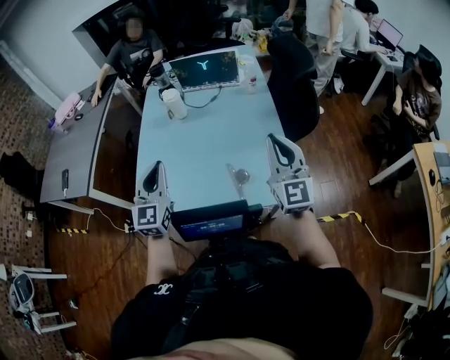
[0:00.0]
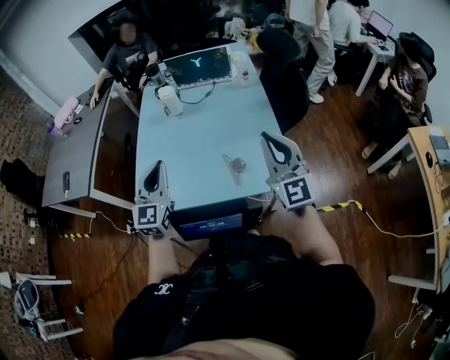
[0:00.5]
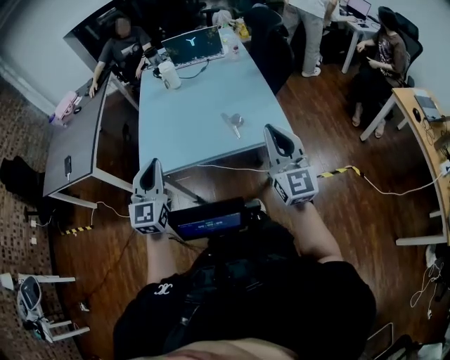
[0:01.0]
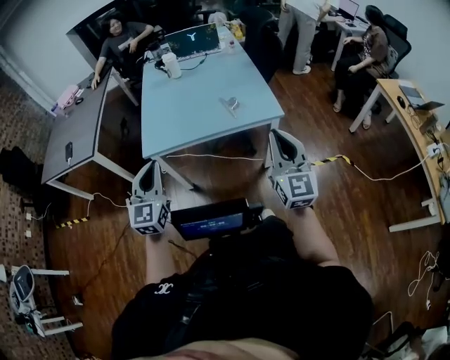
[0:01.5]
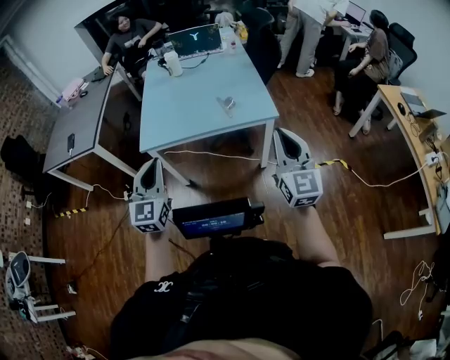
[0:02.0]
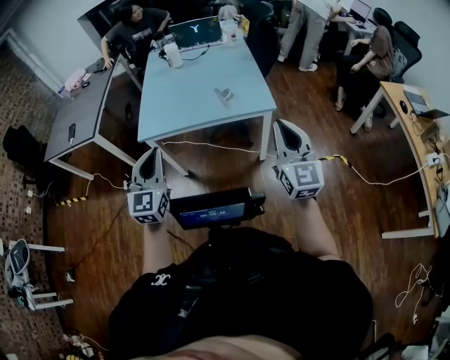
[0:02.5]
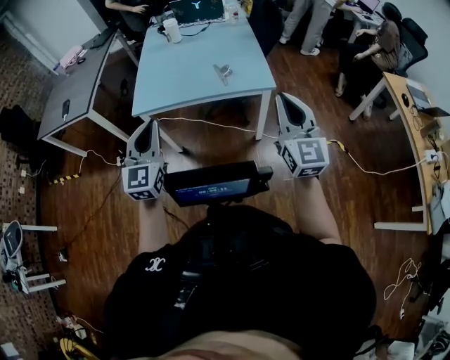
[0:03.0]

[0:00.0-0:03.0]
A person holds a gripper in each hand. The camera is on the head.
0:00.0 to 0:01.5: The grippers both shift backward by roughly 40 cm.
0:01.5 to 0:03.0: Both grippers travel together to the right, about 10 cm.

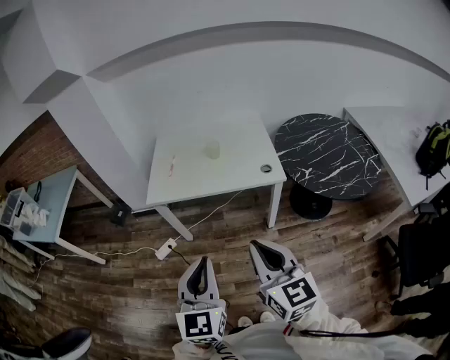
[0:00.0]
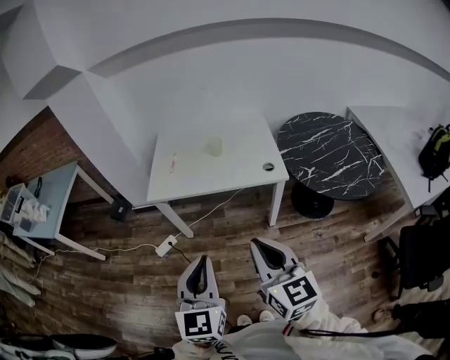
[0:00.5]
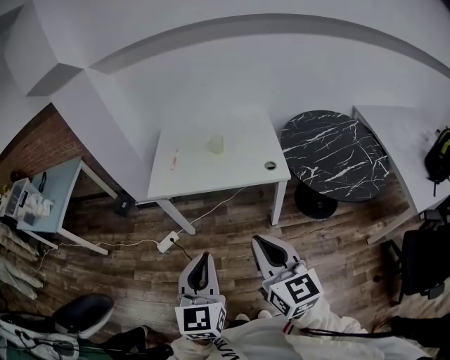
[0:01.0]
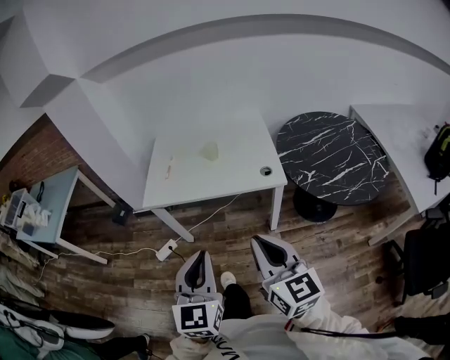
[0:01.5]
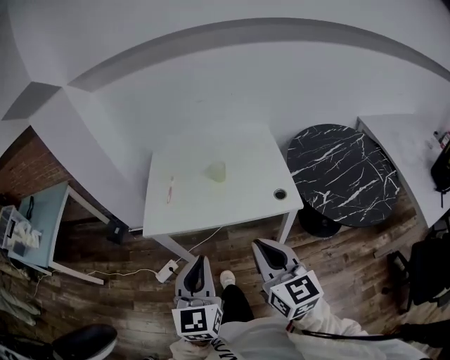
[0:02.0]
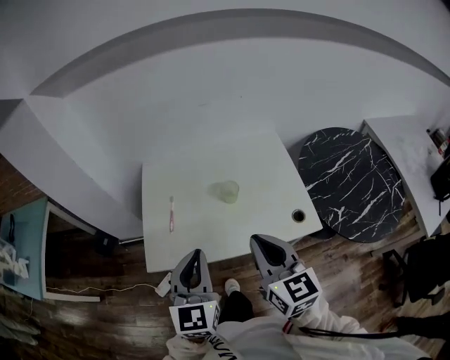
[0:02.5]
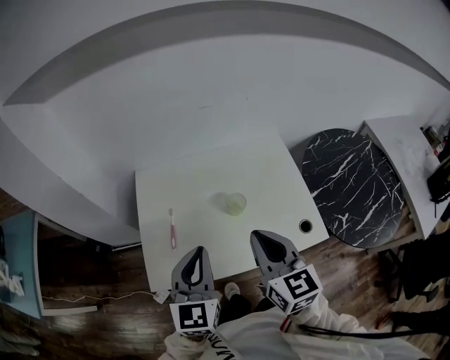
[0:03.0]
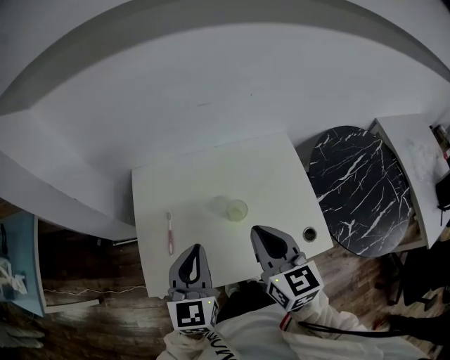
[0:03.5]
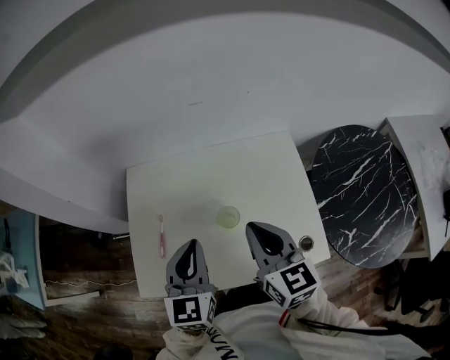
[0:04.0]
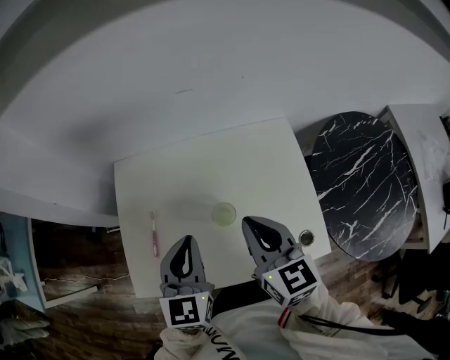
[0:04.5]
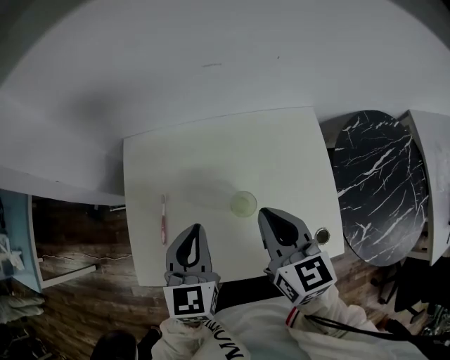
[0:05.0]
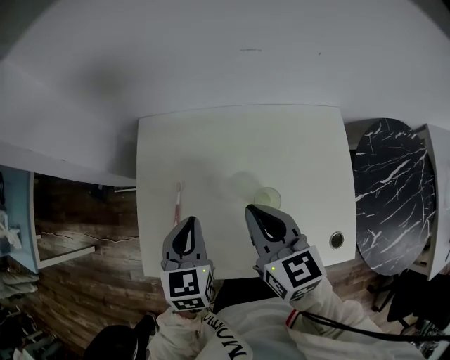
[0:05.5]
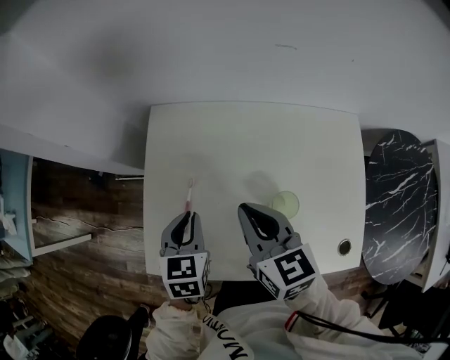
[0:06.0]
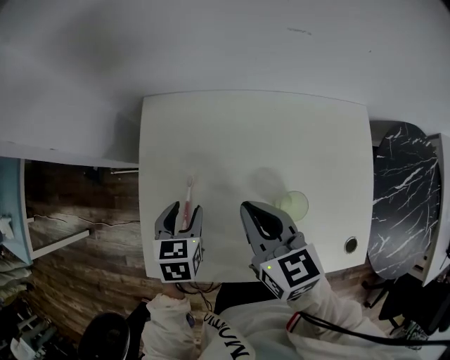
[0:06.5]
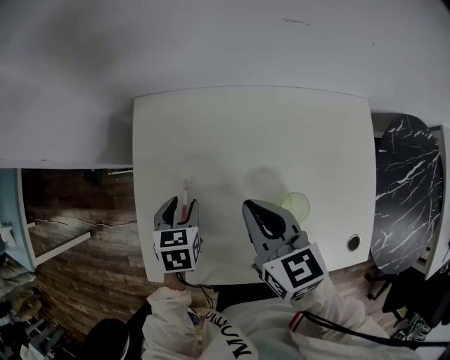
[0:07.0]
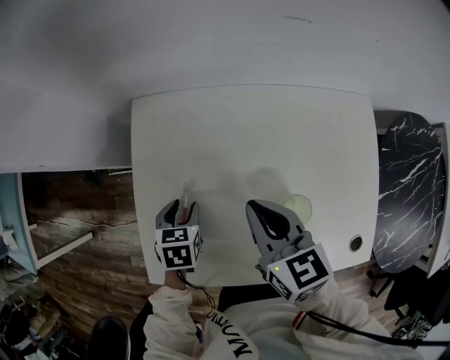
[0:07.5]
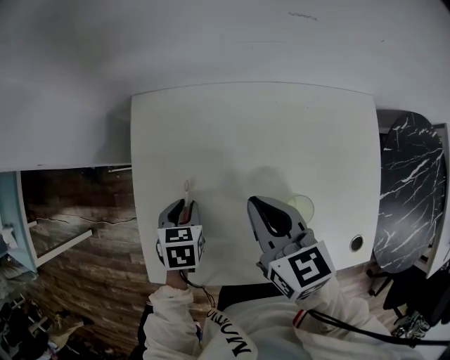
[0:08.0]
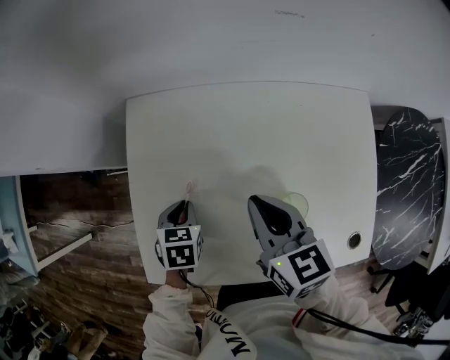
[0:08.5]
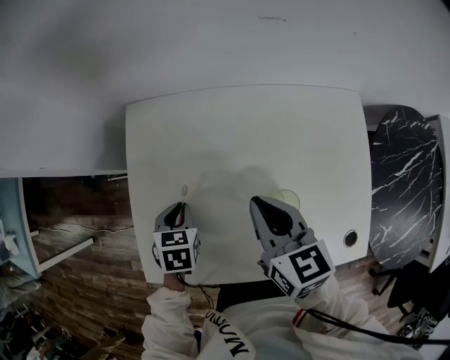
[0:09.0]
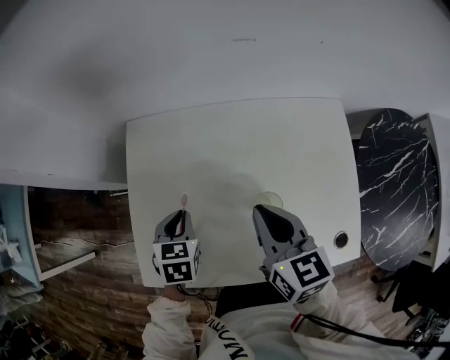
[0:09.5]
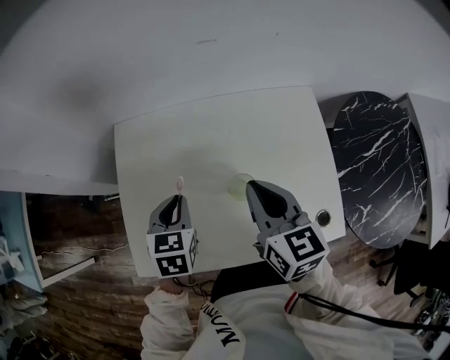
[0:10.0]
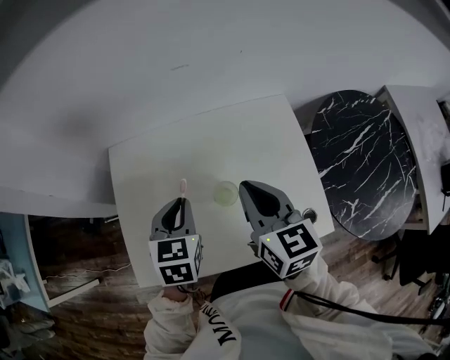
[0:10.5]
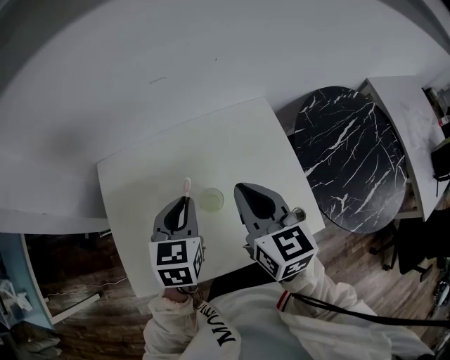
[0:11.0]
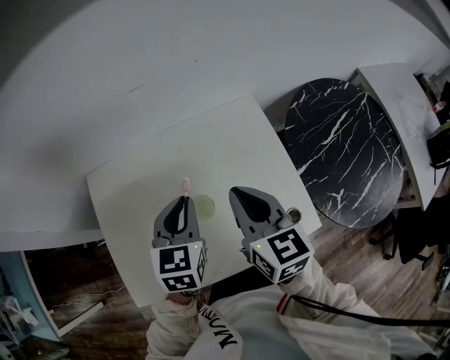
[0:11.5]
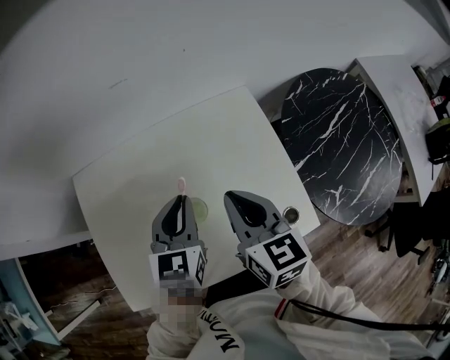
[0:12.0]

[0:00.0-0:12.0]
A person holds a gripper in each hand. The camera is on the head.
0:00.0 to 0:02.0: Both grippers travel together forward, roughly 20 cm.
0:02.0 to 0:04.0: The two grippers travel together, forward, some 40 cm.
0:04.0 to 0:06.0: The right gripper shifts about 20 cm to the left, downward and forward. The left gripper shifts roughly 25 cm downward and to the left, and rotates roughly 30 degrees.
0:06.0 to 0:08.0: The left gripper travels downward by about 15 cm, and opens, while the right gripper changes place by some 5 cm.
0:08.0 to 0:10.0: The right gripper heads to the right, upward and backward, covering about 15 cm. Meanwhile the left gripper goes some 20 cm upward and to the right.
0:10.0 to 0:12.0: The left gripper goes roughly 15 cm to the right, and turns by about 20 degrees. Meanwhile the right gripper travels to the right by some 10 cm.

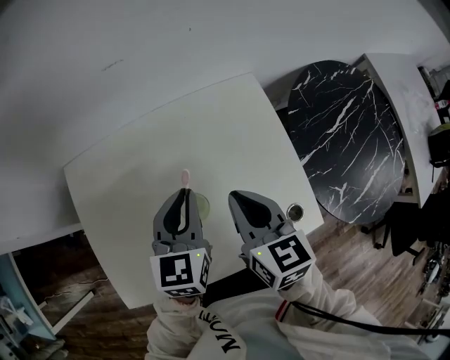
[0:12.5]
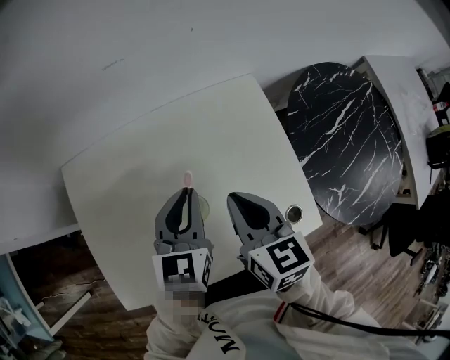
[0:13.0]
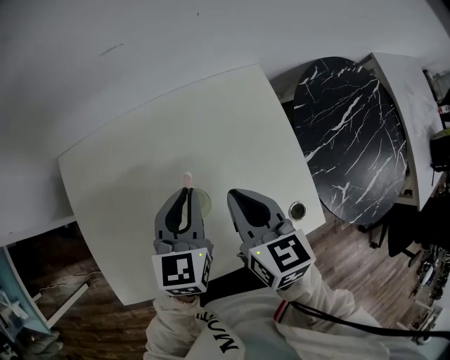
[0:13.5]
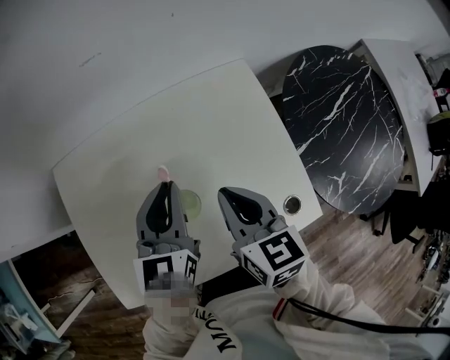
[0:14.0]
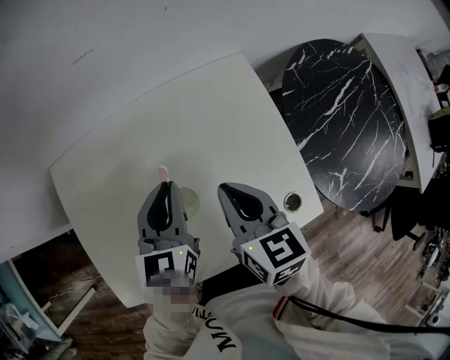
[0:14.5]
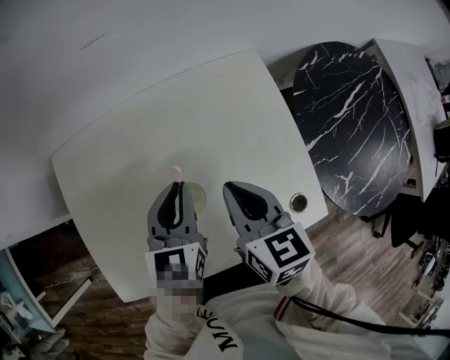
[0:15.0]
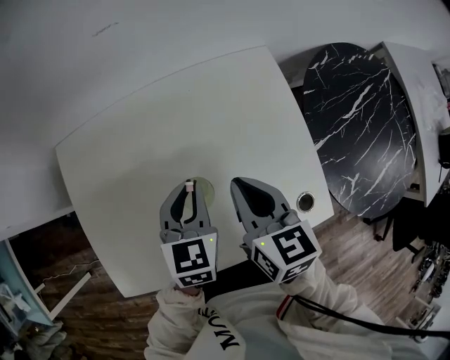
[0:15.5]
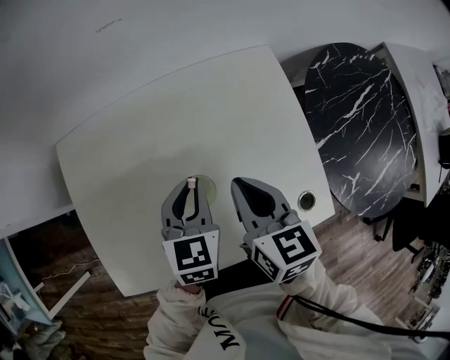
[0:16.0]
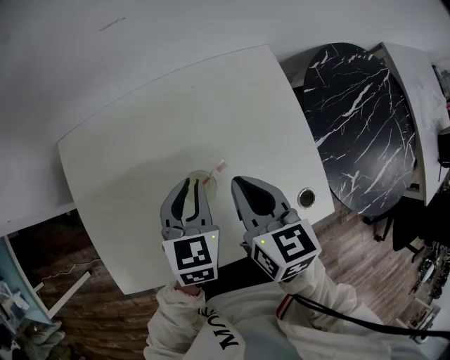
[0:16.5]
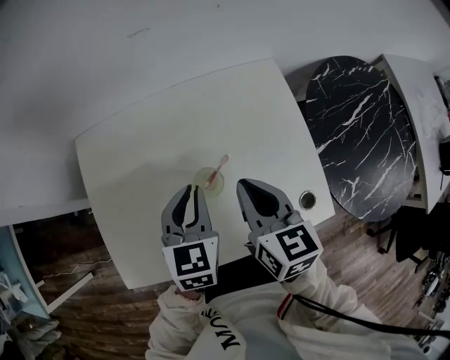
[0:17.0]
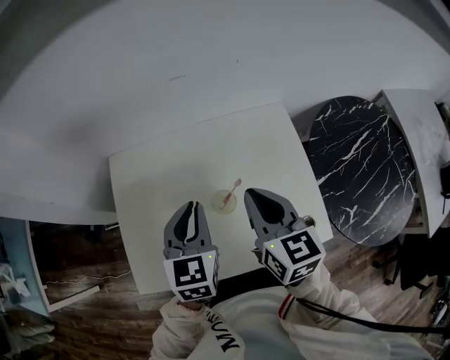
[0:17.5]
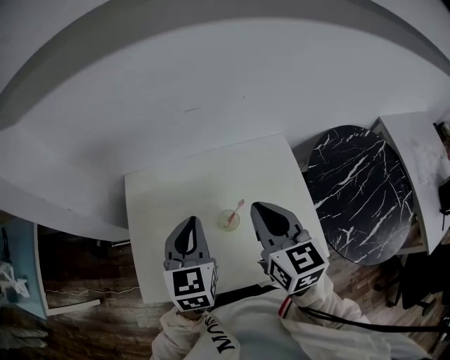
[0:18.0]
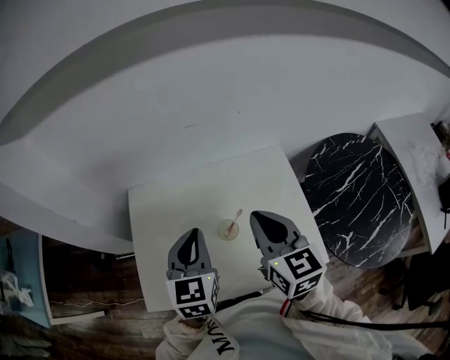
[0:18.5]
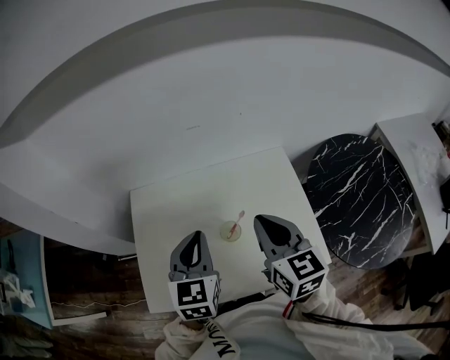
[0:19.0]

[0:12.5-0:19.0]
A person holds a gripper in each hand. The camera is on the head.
0:12.5 to 0:14.5: The grippers stay close to where they were, moving slightly.
0:14.5 to 0:17.0: The left gripper heads backward, covering some 5 cm.
0:17.0 to 0:19.0: The grippers both shift upward by roughly 15 cm.

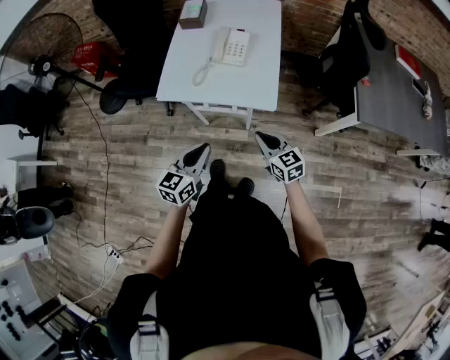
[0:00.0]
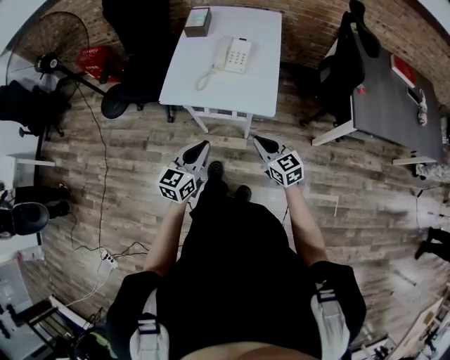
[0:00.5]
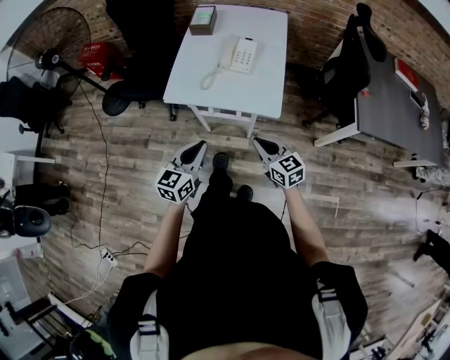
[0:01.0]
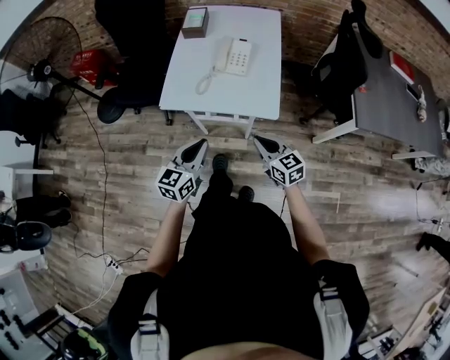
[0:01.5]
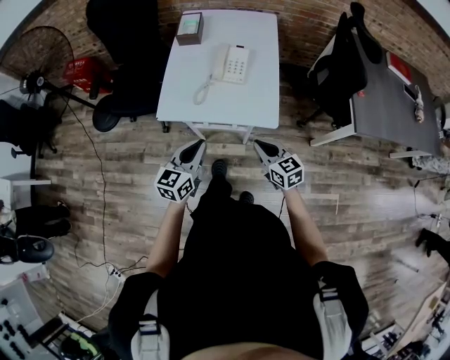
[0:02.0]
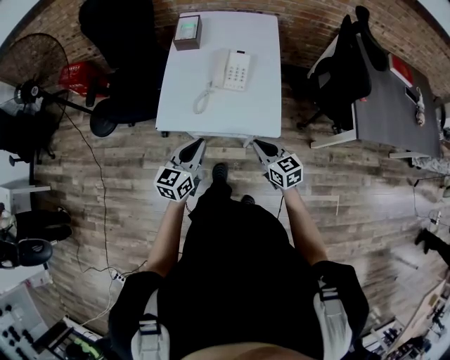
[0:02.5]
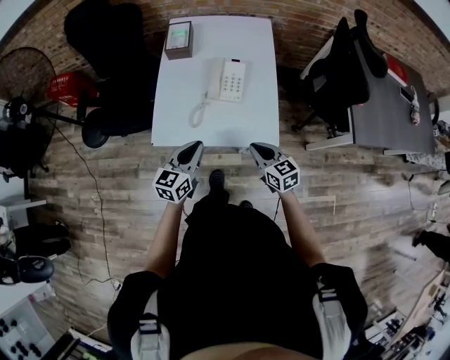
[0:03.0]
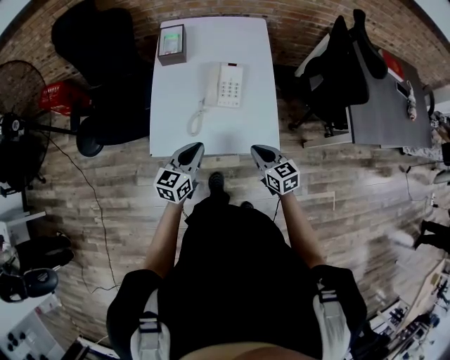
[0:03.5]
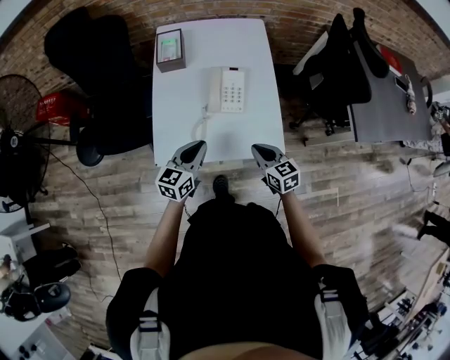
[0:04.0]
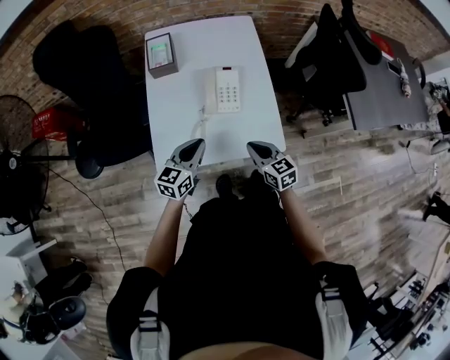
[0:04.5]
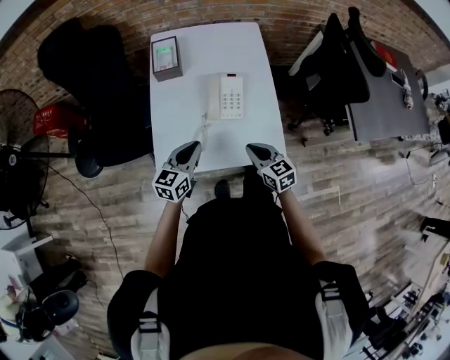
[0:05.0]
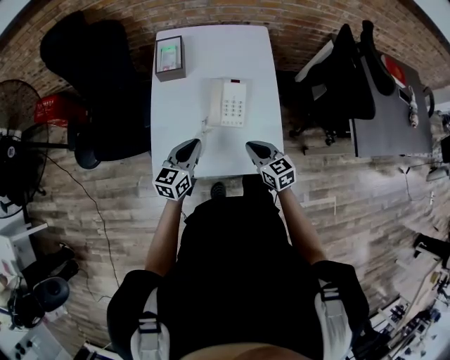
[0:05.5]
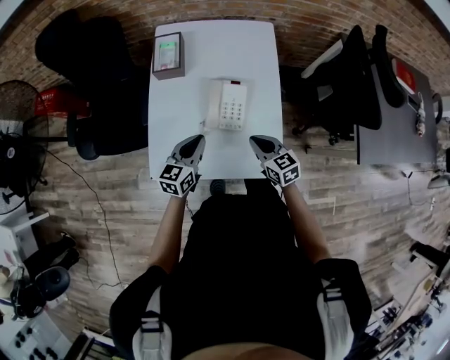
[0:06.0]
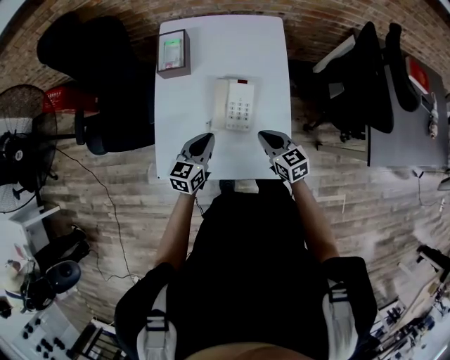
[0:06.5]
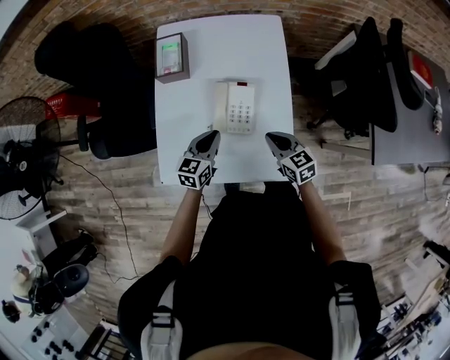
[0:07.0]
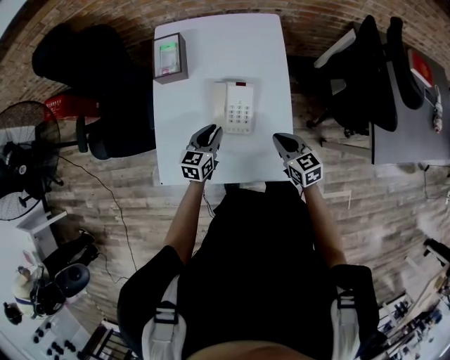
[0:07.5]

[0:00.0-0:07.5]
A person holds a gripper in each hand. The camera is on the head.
0:00.0 to 0:02.0: The right gripper moves roughly 5 cm; the left gripper travels forward by some 10 cm.
0:02.0 to 0:04.0: Both grippers move forward, roughly 20 cm.
0:04.0 to 0:05.5: Both grippers travel together forward, roughly 10 cm.
0:05.5 to 0:07.5: The right gripper travels to the right and forward by some 15 cm. Meanwhile the left gripper travels forward, downward and to the right by about 15 cm.
